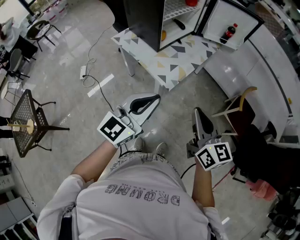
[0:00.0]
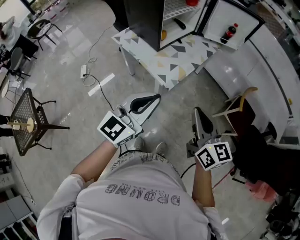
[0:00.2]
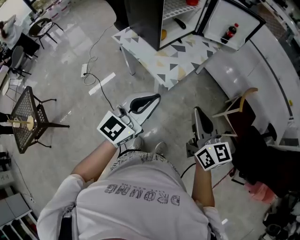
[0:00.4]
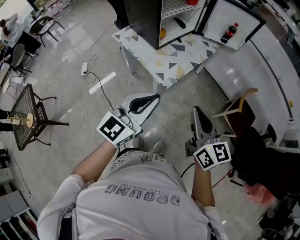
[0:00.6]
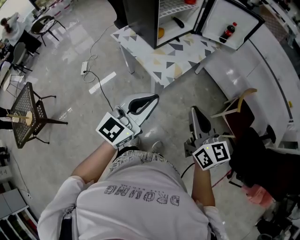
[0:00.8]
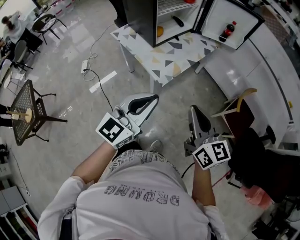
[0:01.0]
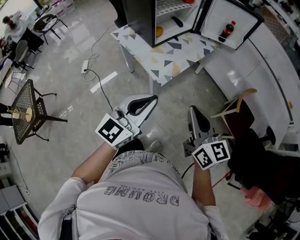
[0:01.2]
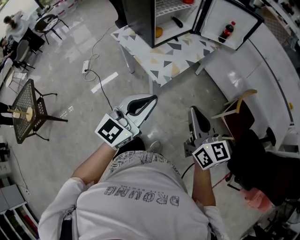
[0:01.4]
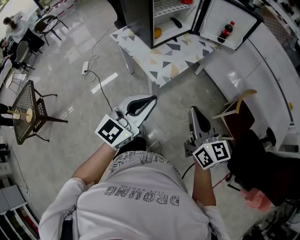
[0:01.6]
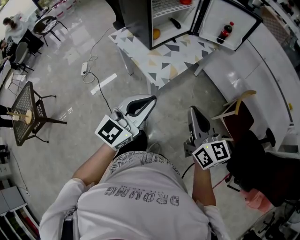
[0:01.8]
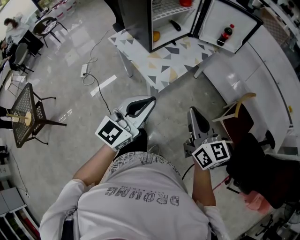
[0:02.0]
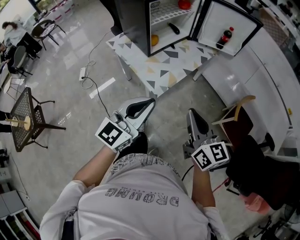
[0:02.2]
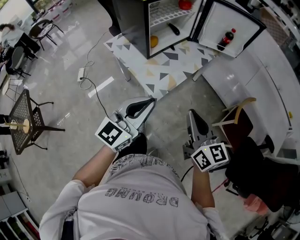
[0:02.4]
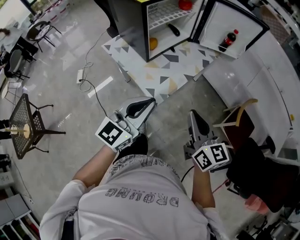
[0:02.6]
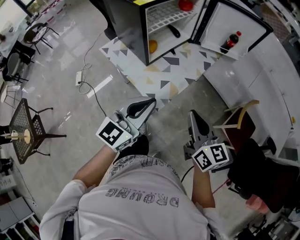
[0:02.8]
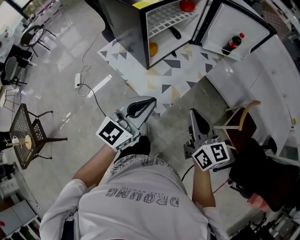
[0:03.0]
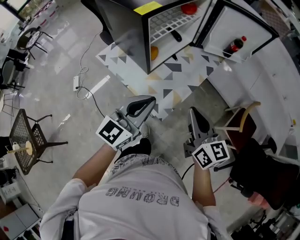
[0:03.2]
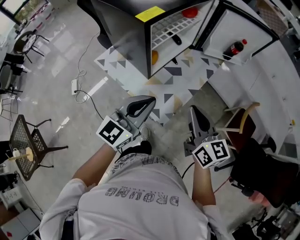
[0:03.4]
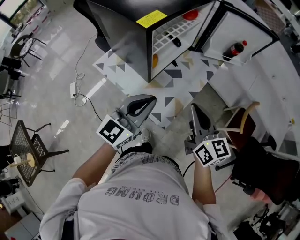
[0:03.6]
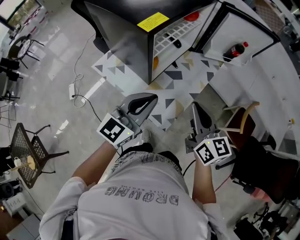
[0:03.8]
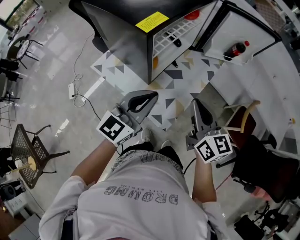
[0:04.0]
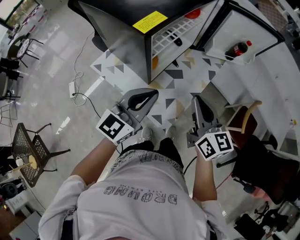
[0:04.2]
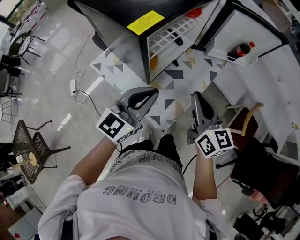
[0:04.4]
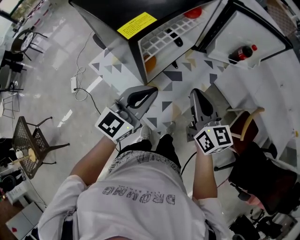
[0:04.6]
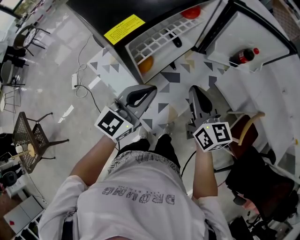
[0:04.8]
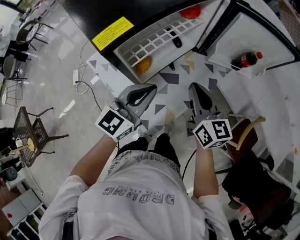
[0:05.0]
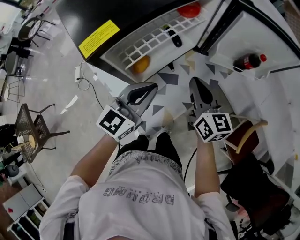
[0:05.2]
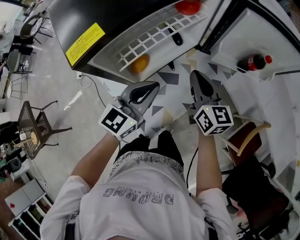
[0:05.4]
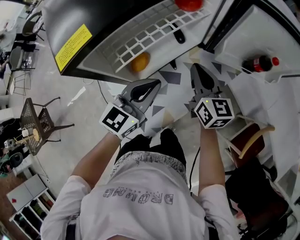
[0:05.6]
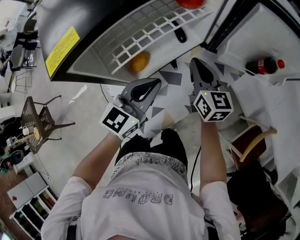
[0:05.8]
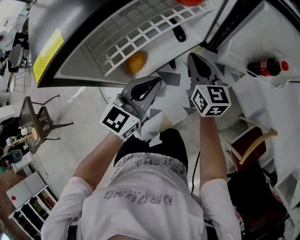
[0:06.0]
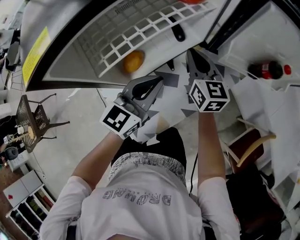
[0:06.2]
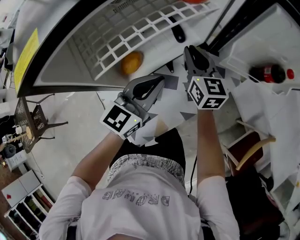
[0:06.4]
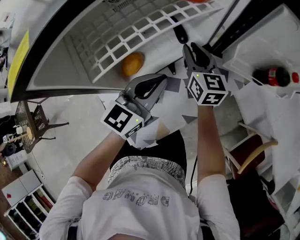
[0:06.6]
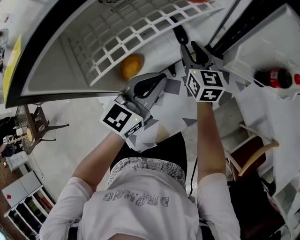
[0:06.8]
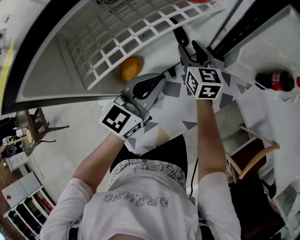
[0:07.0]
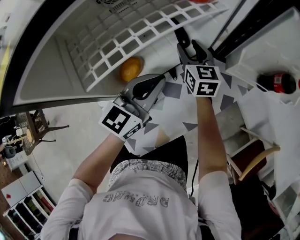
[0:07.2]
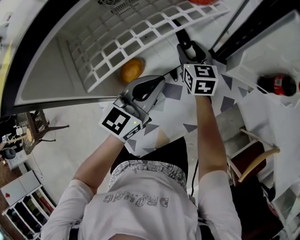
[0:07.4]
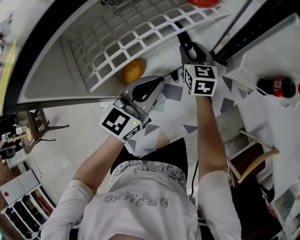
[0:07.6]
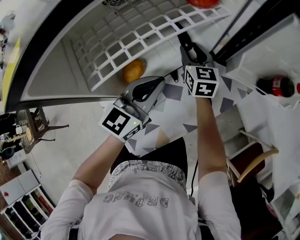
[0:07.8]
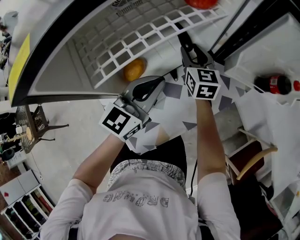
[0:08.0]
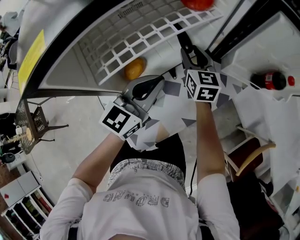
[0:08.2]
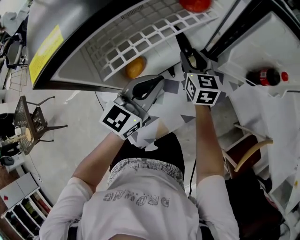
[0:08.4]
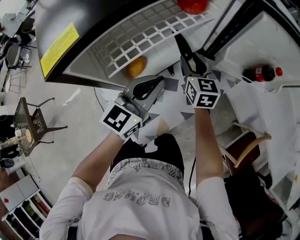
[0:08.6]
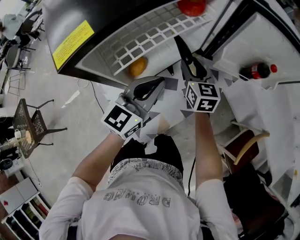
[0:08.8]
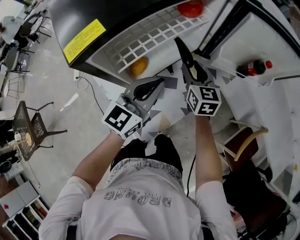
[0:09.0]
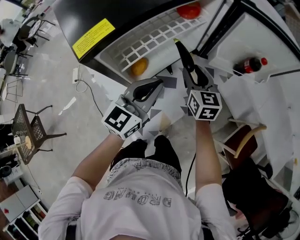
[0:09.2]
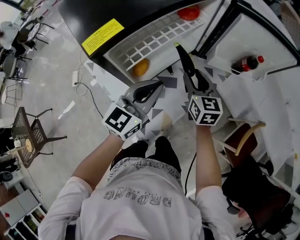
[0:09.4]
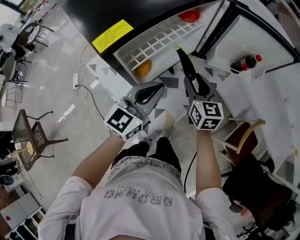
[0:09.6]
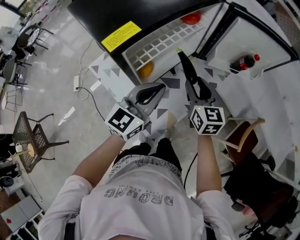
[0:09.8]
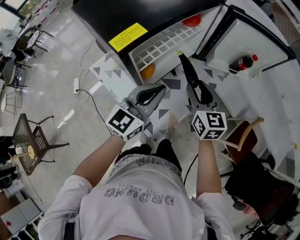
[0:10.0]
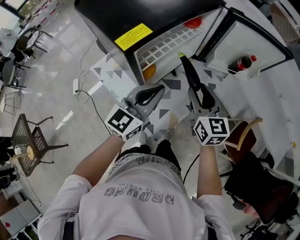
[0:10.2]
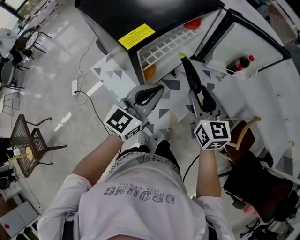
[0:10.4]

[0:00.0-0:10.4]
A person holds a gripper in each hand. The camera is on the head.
0.0 to 1.4 s: Both grippers travel together to the right, about 5 cm.
1.4 to 3.0 s: Both grippers travel together forward, about 20 cm.
3.0 to 4.4 s: The right gripper is displaced forward and to the left by some 15 cm, while the left gripper heads forward, covering some 15 cm.
4.4 to 6.0 s: The left gripper is displaced forward, downward and to the right by roughly 20 cm. Meanwhile the right gripper heads forward and downward, covering about 30 cm.
6.0 to 7.4 s: The right gripper goes some 15 cm forward and downward, and opens, while the left gripper shifts by roughly 5 cm.
7.4 to 9.0 s: The right gripper goes roughly 15 cm backward, upward and to the right, while the left gripper goes roughly 10 cm upward and backward.
9.0 to 10.4 s: The right gripper shifts roughly 20 cm backward and upward. Meanwhile the left gripper shifts approximately 10 cm backward and upward.

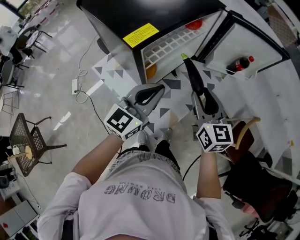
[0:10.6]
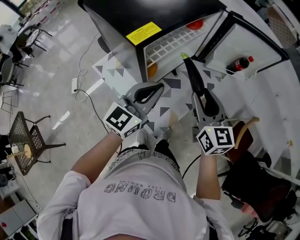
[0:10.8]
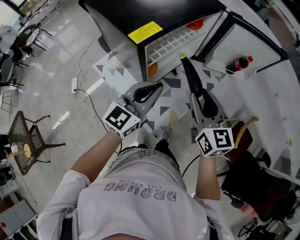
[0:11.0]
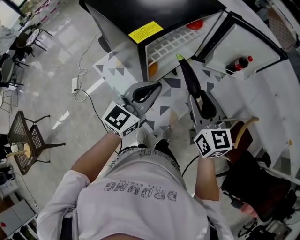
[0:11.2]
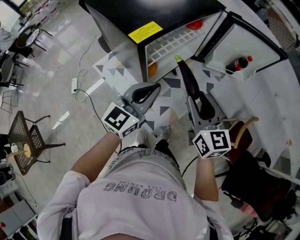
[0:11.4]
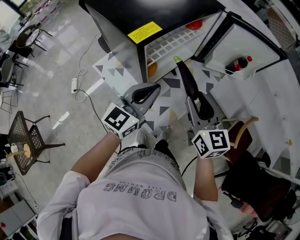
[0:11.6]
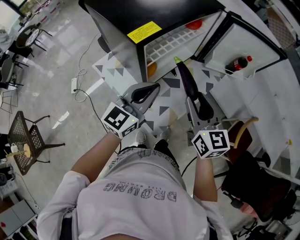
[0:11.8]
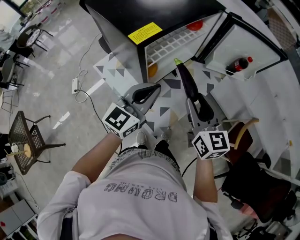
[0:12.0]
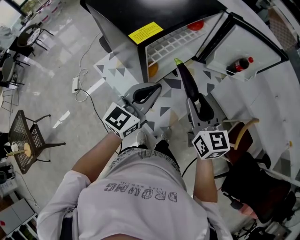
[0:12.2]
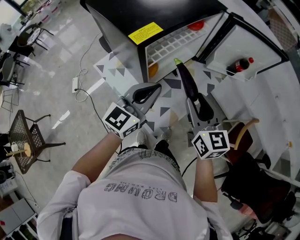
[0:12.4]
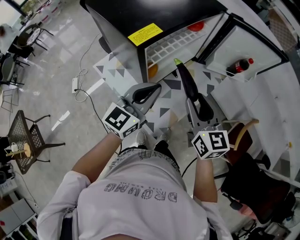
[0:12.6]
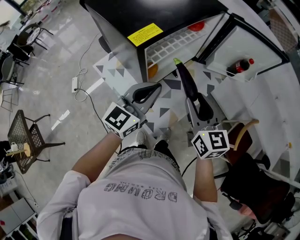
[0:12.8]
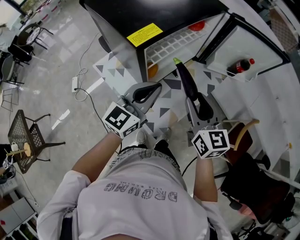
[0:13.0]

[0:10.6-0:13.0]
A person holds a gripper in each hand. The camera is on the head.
10.6 to 13.0 s: The grippers move only a little.

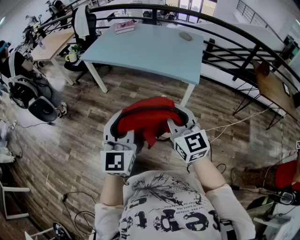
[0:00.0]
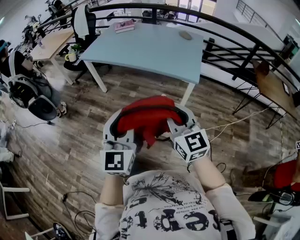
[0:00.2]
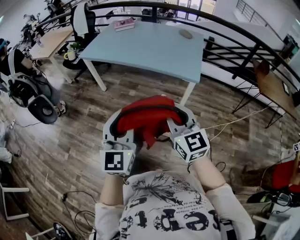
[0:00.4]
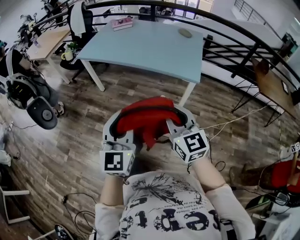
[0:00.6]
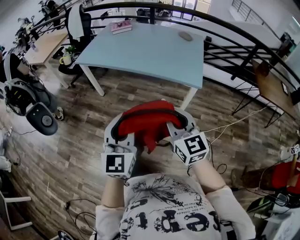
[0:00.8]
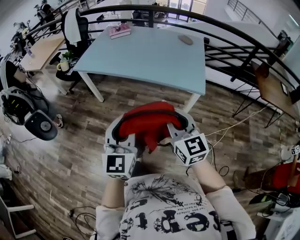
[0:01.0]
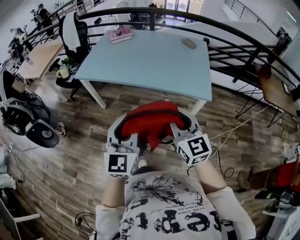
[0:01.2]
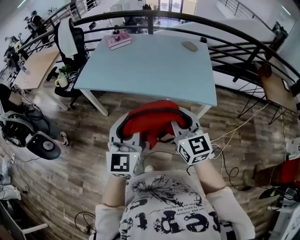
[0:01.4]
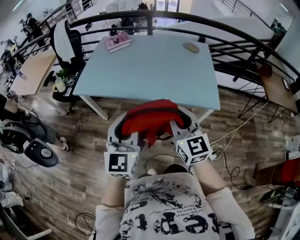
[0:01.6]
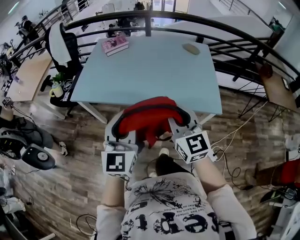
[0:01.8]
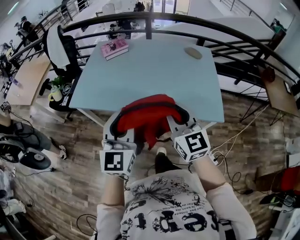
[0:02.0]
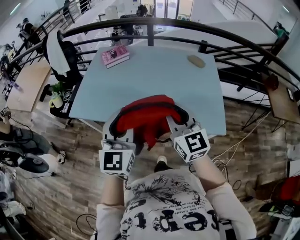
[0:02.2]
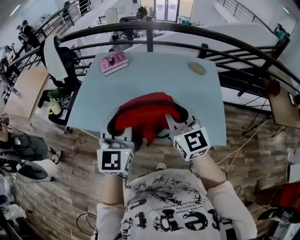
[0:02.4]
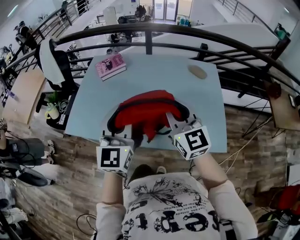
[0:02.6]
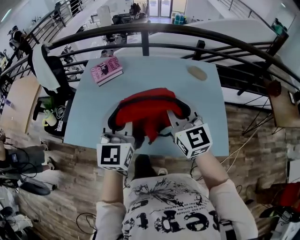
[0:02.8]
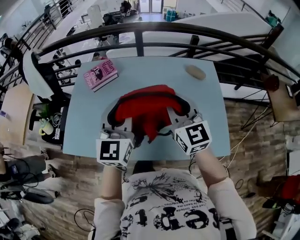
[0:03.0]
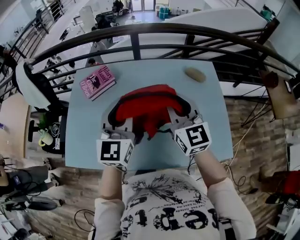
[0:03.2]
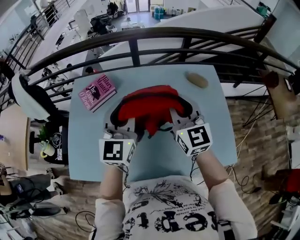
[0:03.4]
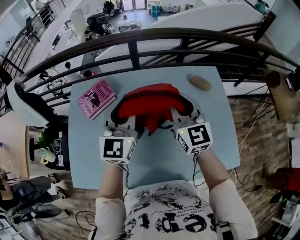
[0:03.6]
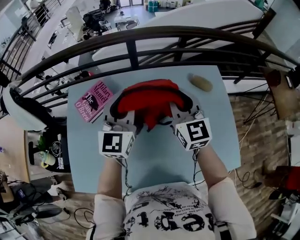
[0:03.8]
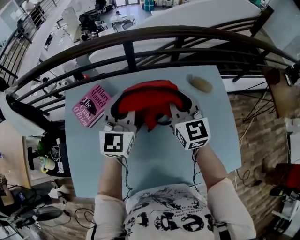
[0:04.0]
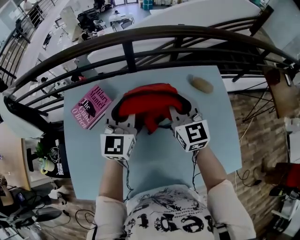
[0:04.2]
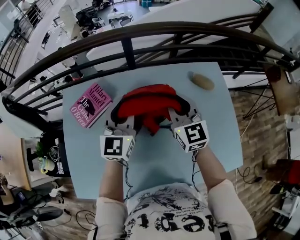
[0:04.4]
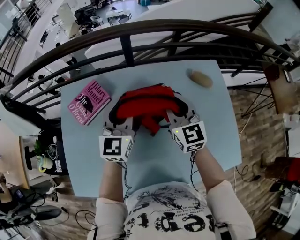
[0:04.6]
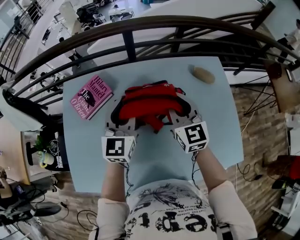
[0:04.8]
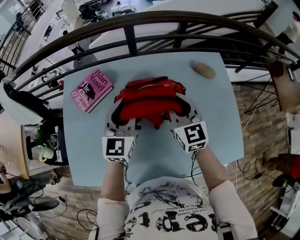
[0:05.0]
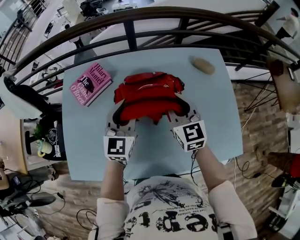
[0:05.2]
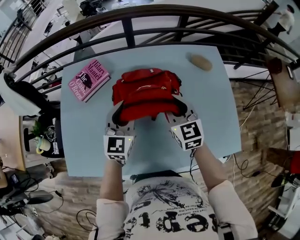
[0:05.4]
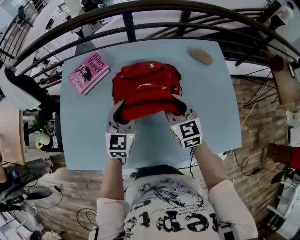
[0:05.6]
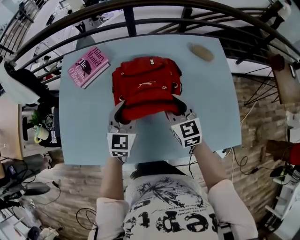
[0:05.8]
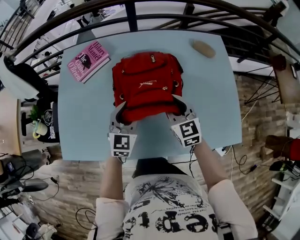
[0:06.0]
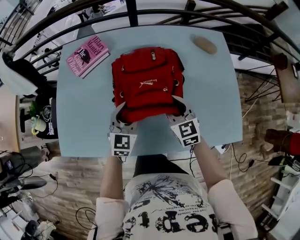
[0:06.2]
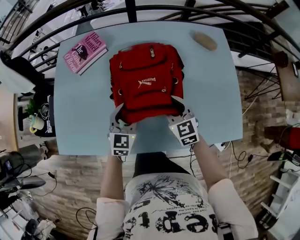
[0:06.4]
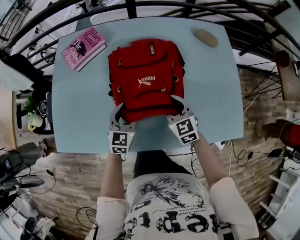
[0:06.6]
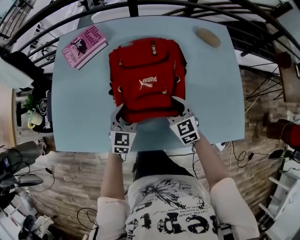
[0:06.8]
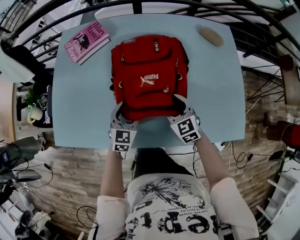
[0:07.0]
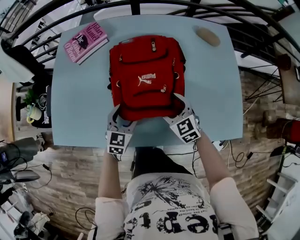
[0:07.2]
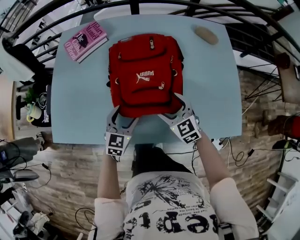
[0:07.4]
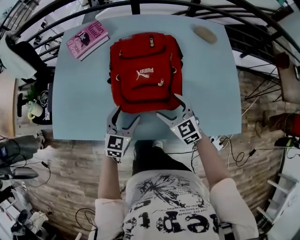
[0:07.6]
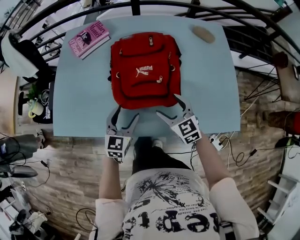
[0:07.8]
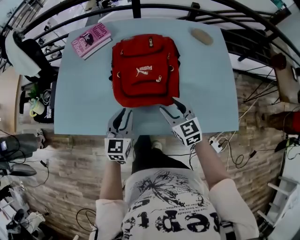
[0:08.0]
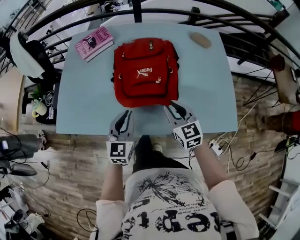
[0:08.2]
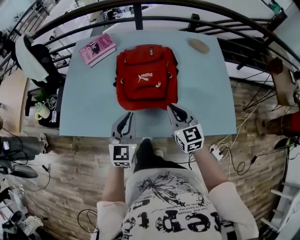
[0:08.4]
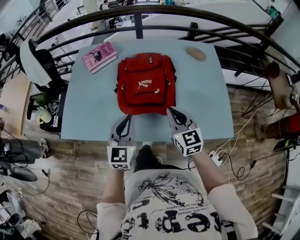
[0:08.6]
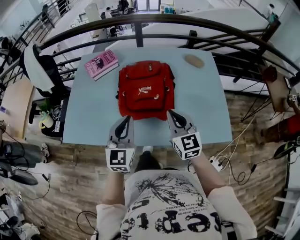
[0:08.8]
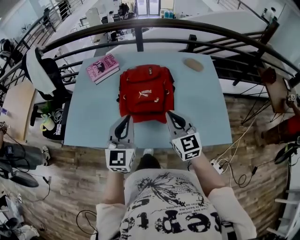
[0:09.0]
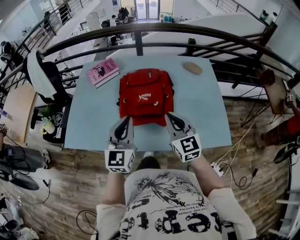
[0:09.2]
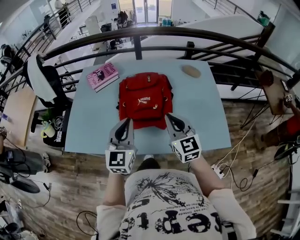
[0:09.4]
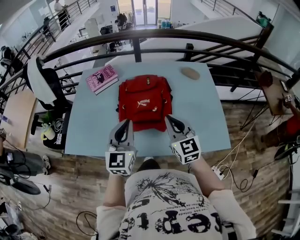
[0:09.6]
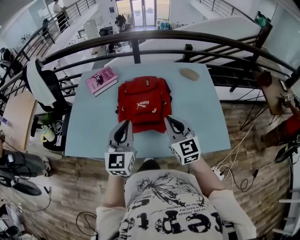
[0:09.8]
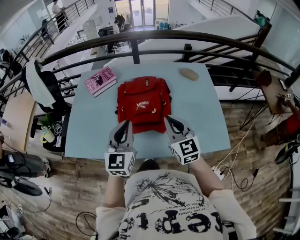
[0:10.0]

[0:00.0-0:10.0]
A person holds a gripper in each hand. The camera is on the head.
0.0 to 1.4 s: Both grippers travel together forward and to the left, approximately 30 cm.
1.4 to 2.8 s: Both grippers are carried forward, approximately 50 cm.
2.8 to 4.2 s: Both grippers travel together forward, some 35 cm.
4.2 to 5.8 s: The two grippers go some 25 cm backward and downward.
5.8 to 7.2 s: Both grippers travel together downward and backward, approximately 15 cm. The left gripper opens up. The right gripper changes its angle by roughly 20 degrees, and opens up.
7.2 to 8.6 s: The grippers both shift upward and backward by approximately 20 cm. The left gripper changes its angle by approximately 20 degrees, and closes up, while the right gripper changes its angle by approximately 30 degrees, and closes its fingers.
8.6 to 10.0 s: Both grippers move upward, about 10 cm.

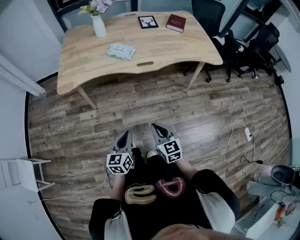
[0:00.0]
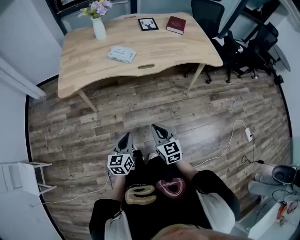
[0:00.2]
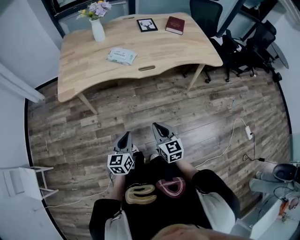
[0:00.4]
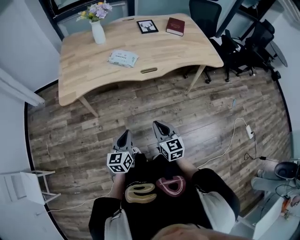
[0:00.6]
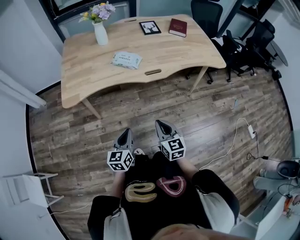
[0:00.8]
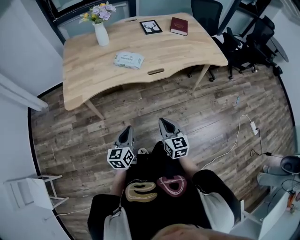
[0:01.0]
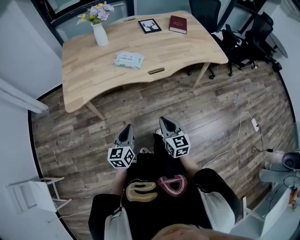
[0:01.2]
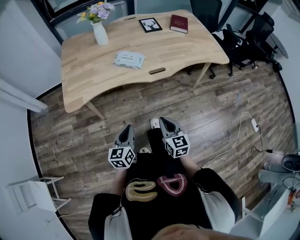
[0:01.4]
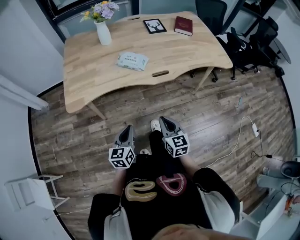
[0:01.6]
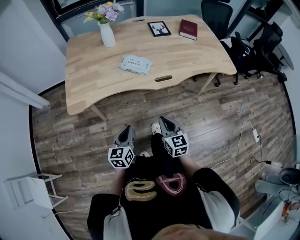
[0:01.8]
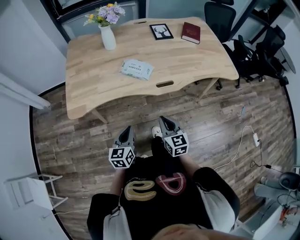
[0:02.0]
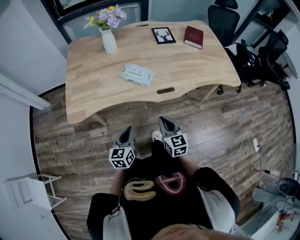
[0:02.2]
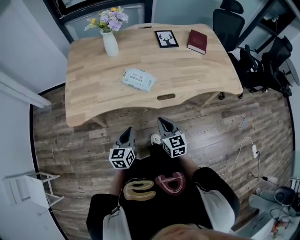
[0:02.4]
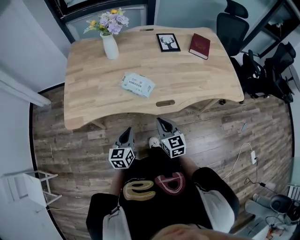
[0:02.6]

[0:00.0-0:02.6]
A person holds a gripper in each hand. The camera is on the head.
0.0 to 1.2 s: The grippers both shift forward and to the left by roughly 15 cm.
1.2 to 2.6 s: Both grippers travel together forward, about 20 cm.
